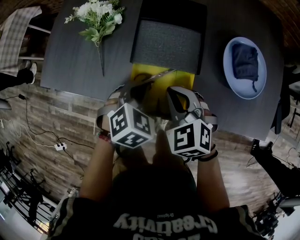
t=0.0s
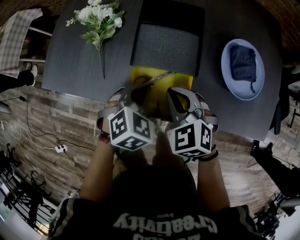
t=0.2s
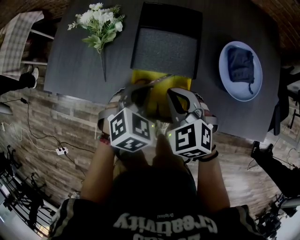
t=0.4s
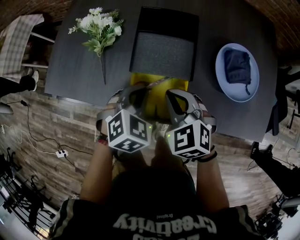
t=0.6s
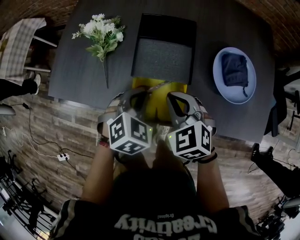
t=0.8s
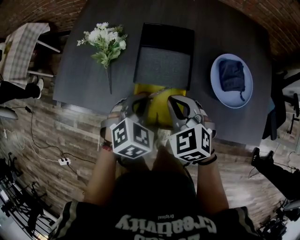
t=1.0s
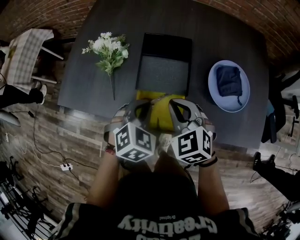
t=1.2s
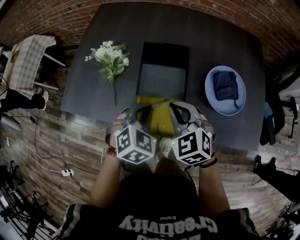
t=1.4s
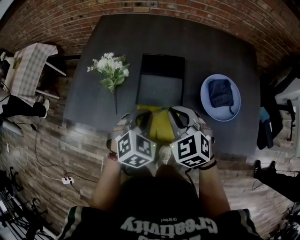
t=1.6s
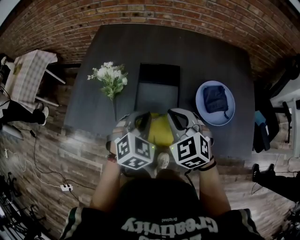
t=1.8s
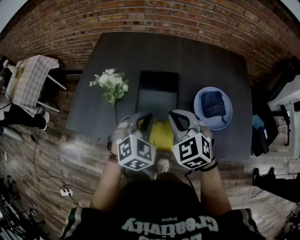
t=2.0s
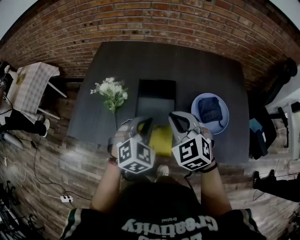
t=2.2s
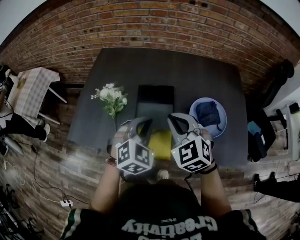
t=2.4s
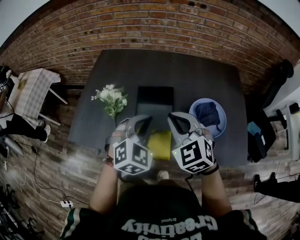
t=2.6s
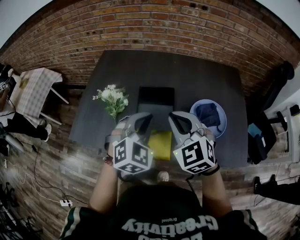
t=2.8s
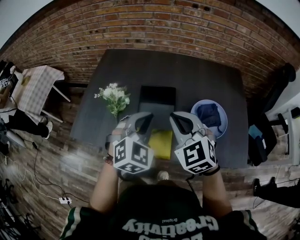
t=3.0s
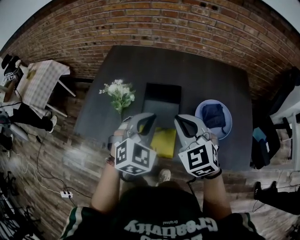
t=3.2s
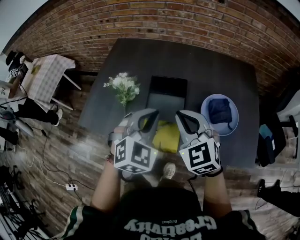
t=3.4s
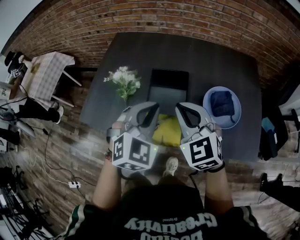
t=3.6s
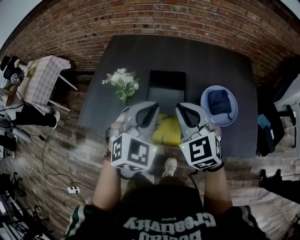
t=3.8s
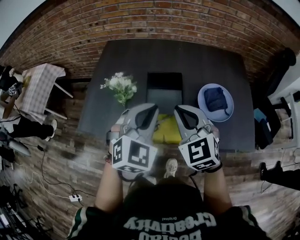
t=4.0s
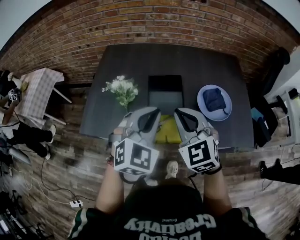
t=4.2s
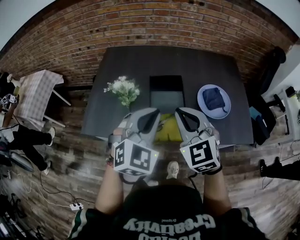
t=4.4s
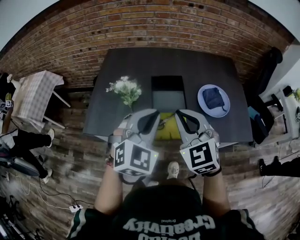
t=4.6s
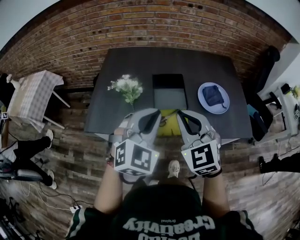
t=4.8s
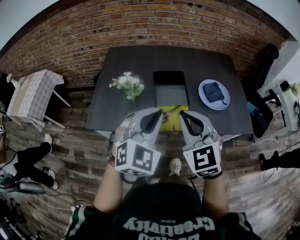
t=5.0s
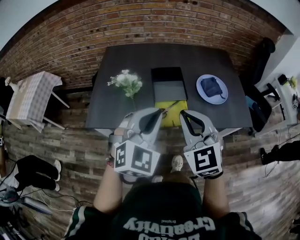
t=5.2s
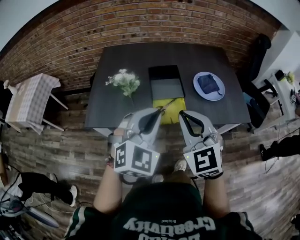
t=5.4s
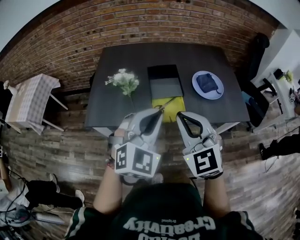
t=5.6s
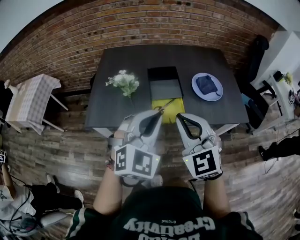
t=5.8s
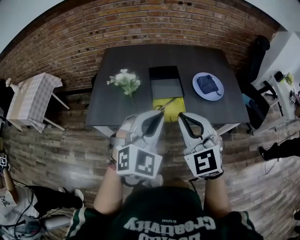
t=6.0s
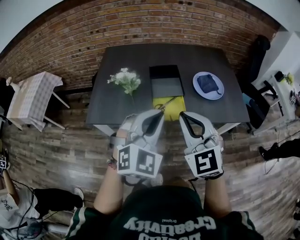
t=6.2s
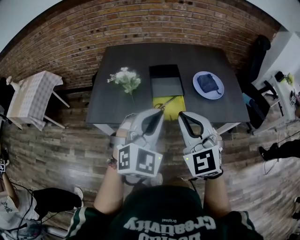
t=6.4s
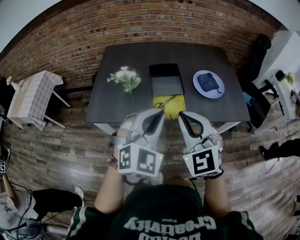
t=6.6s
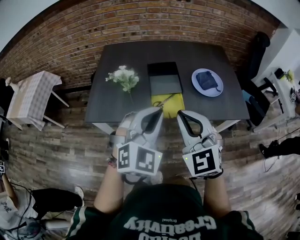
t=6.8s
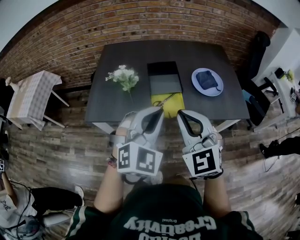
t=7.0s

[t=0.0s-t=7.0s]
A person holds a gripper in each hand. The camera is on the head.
t=0.0s to t=1.4s: Both grippers travel together upward, about 10 cm.
t=1.4s to t=2.8s: The two grippers go approximately 15 cm upward. The left gripper rotates approximately 20 degrees.
t=2.8s to t=4.2s: The left gripper heads backward, upward and to the left, covering approximately 10 cm. Meanwhile the right gripper goes about 10 cm backward and to the left.
t=4.2s to t=5.6s: The grippers both shift backward by roughly 15 cm.
t=5.6s to t=7.0s: The grippers move only a little.

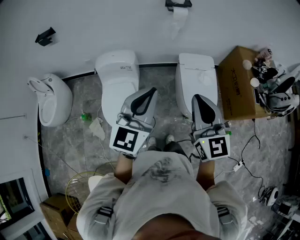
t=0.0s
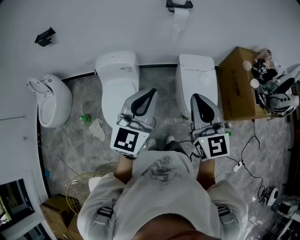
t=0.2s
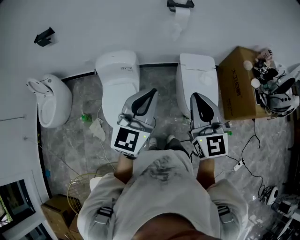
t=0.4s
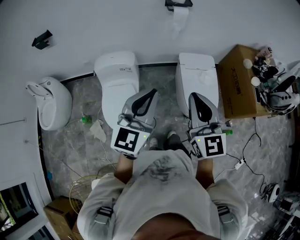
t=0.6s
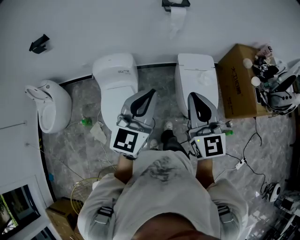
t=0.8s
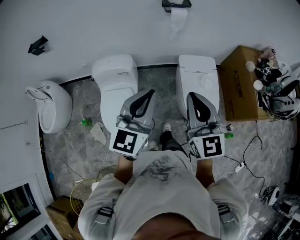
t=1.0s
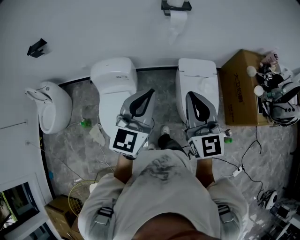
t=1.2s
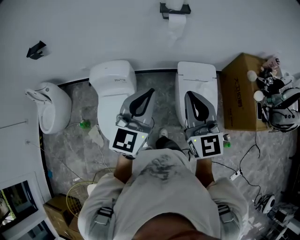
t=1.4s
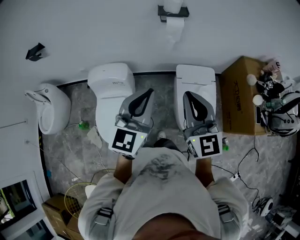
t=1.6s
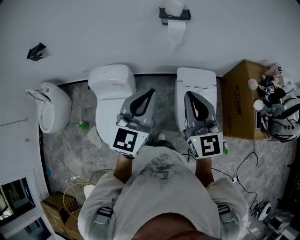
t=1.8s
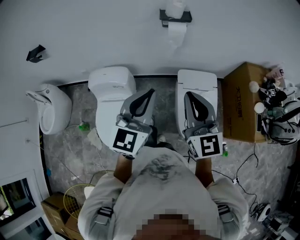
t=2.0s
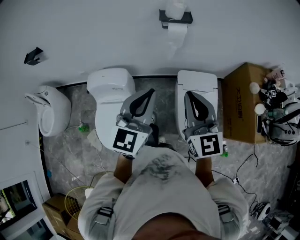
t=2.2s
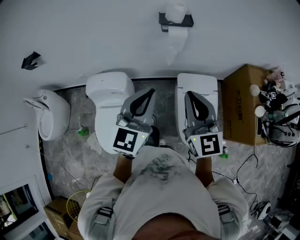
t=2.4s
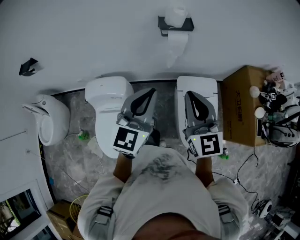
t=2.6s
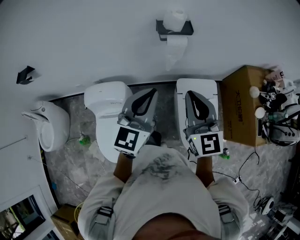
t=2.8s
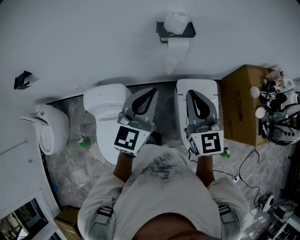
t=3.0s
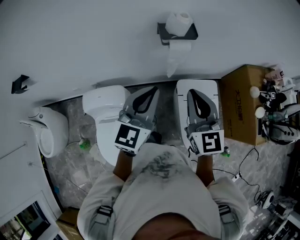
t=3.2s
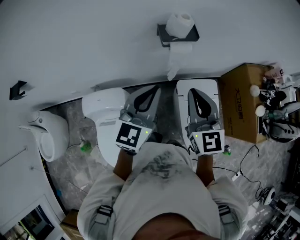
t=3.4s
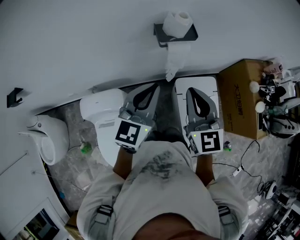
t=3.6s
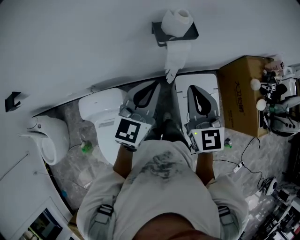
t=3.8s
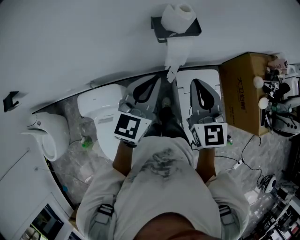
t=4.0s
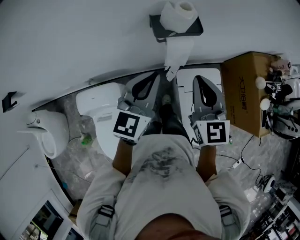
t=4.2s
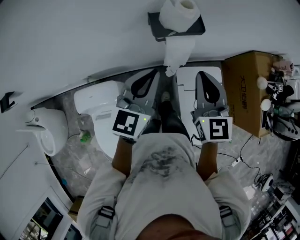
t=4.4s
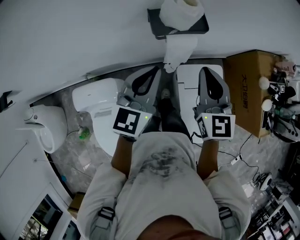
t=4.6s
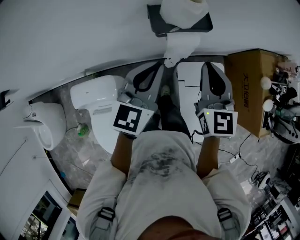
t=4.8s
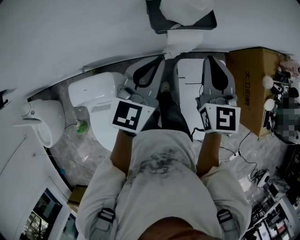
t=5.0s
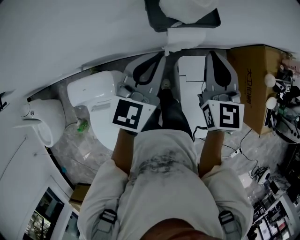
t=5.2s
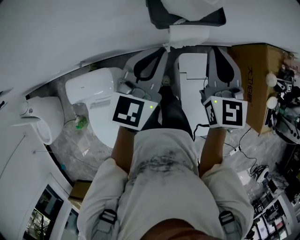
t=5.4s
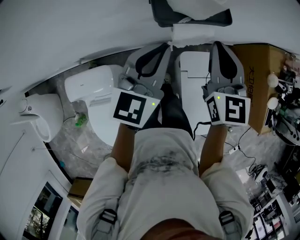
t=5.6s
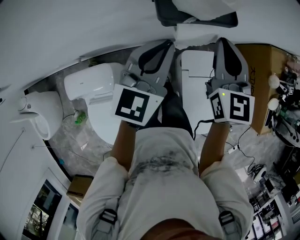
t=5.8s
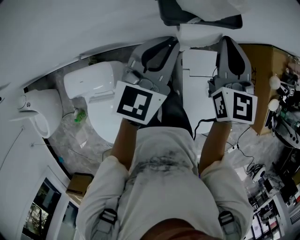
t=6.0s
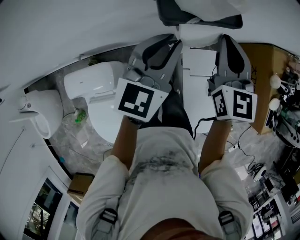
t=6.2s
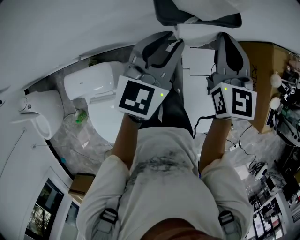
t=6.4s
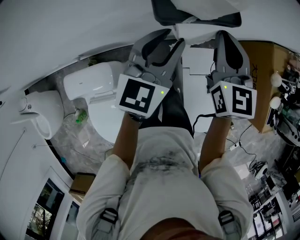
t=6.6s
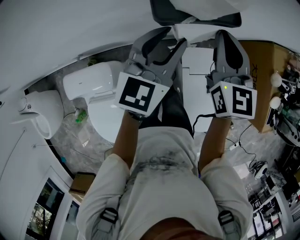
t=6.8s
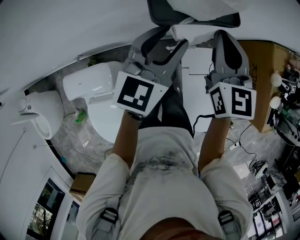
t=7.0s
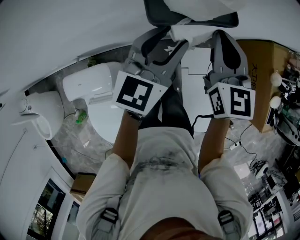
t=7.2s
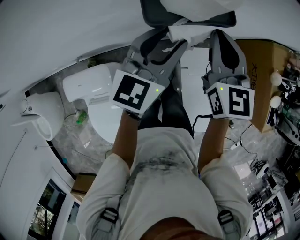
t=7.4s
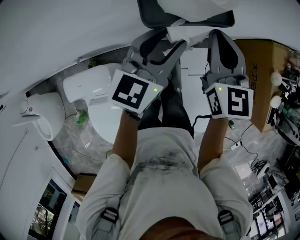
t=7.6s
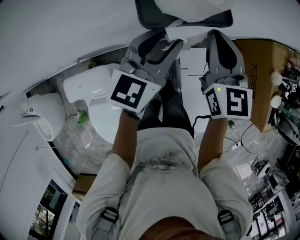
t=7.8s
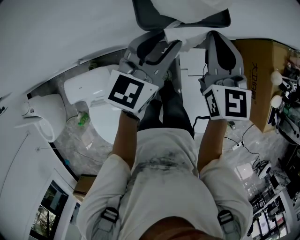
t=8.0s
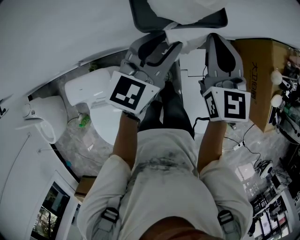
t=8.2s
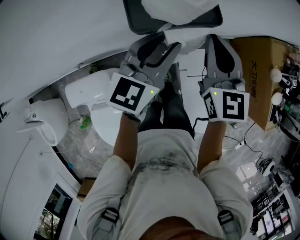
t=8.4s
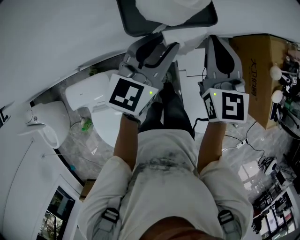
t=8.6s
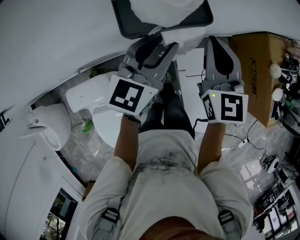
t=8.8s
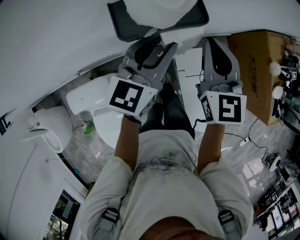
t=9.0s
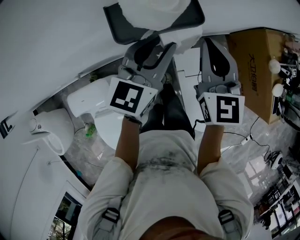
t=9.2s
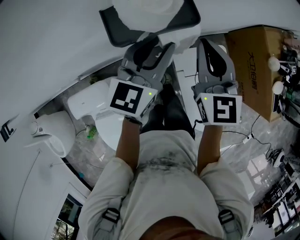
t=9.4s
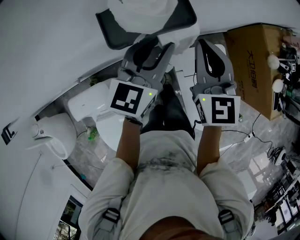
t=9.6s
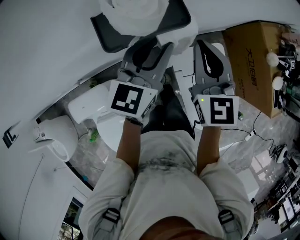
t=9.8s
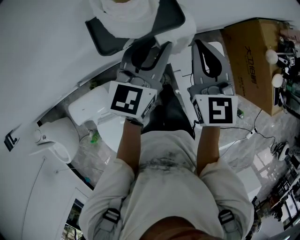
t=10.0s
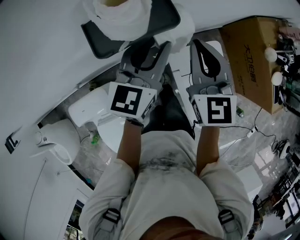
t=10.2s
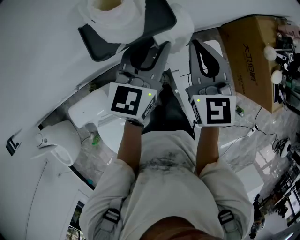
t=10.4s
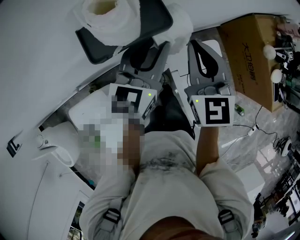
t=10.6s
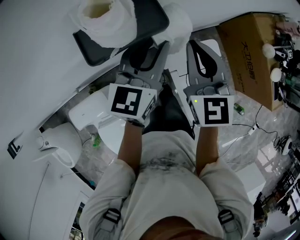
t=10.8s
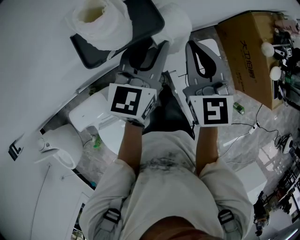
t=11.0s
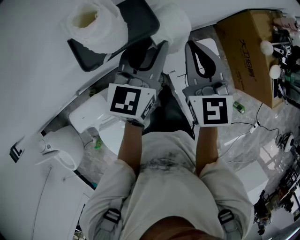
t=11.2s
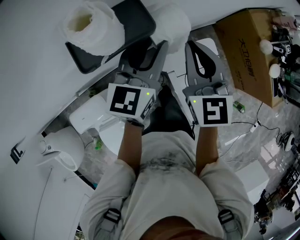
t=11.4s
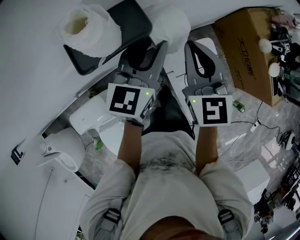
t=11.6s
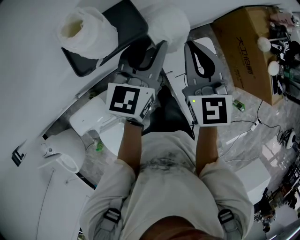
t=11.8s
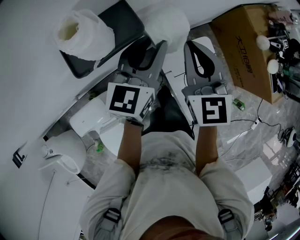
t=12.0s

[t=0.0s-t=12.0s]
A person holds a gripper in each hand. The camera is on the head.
t=0.0s to t=1.6s: The grippers both shift forward by roughly 20 cm.
t=1.6s to t=3.0s: The grippers both shift forward by approximately 20 cm.
t=3.0s to t=4.4s: The two grippers go some 20 cm forward and downward.
t=4.4s to t=6.0s: The grippers both shift forward and downward by approximately 10 cm.
t=6.0s to t=7.6s: The left gripper opens.
t=7.6s to t=9.0s: There are only small adjustments of the grippers.
t=9.0s to t=10.4s: The grippers stay close to where they were, moving slightly.
t=10.4s to t=12.0s: The left gripper moves some 5 cm.

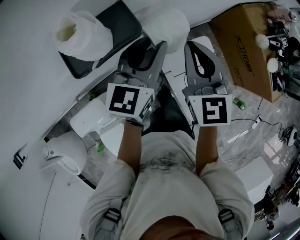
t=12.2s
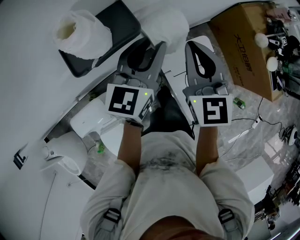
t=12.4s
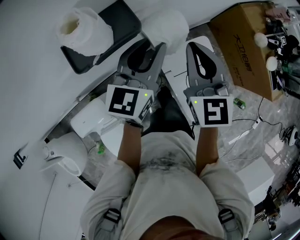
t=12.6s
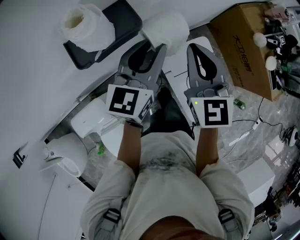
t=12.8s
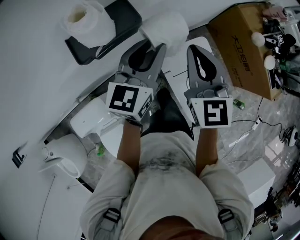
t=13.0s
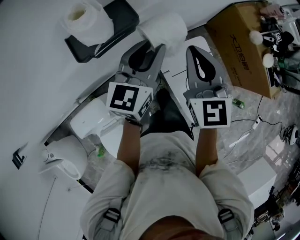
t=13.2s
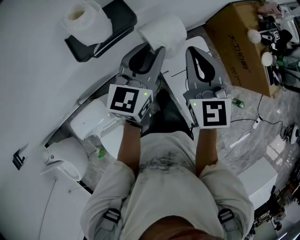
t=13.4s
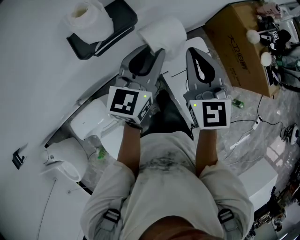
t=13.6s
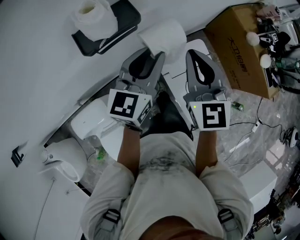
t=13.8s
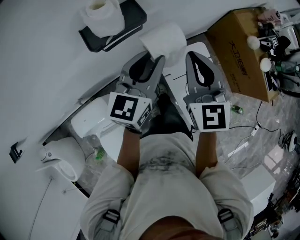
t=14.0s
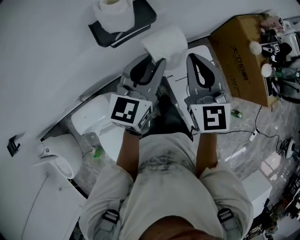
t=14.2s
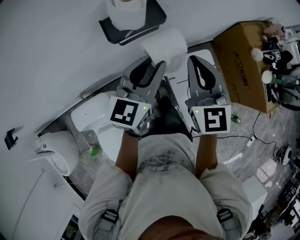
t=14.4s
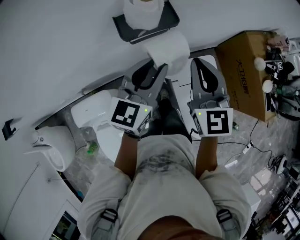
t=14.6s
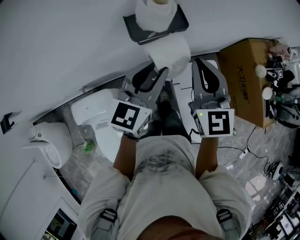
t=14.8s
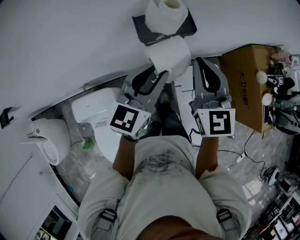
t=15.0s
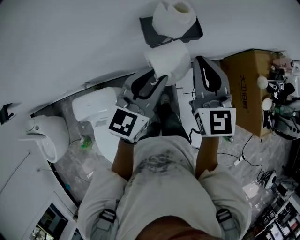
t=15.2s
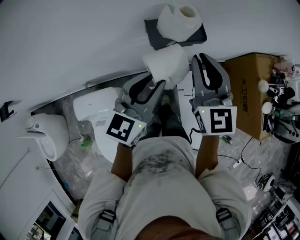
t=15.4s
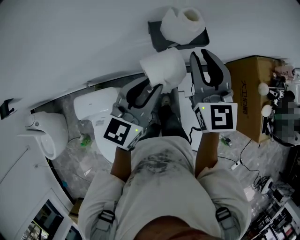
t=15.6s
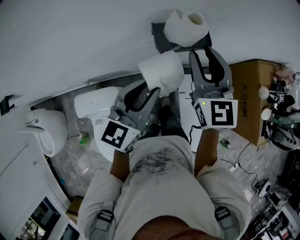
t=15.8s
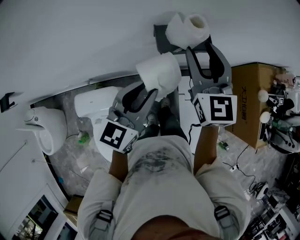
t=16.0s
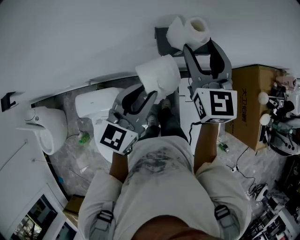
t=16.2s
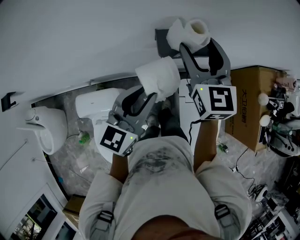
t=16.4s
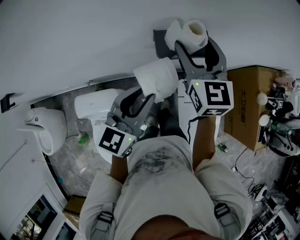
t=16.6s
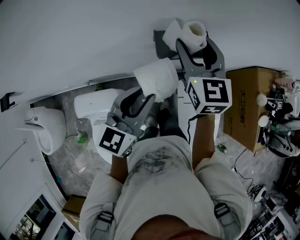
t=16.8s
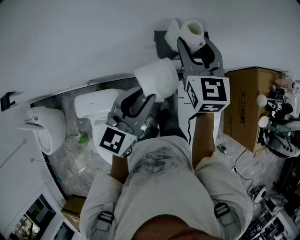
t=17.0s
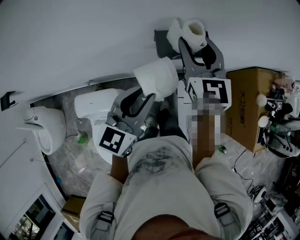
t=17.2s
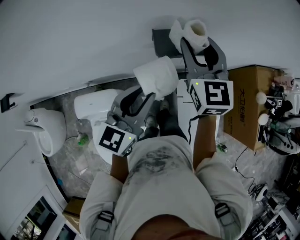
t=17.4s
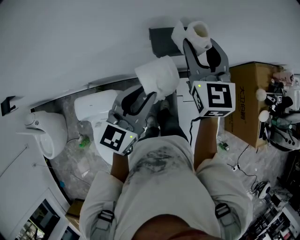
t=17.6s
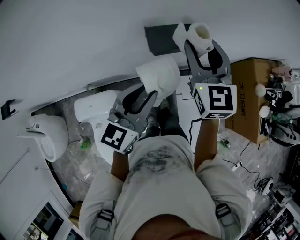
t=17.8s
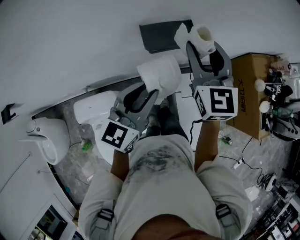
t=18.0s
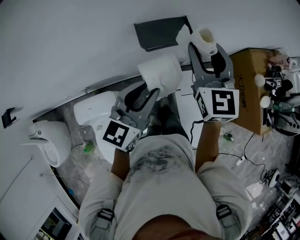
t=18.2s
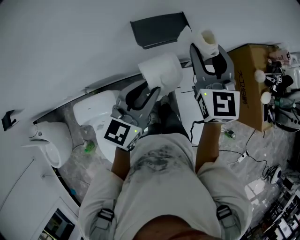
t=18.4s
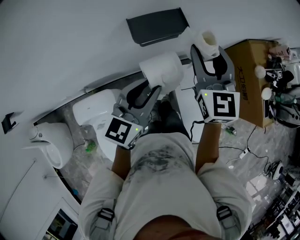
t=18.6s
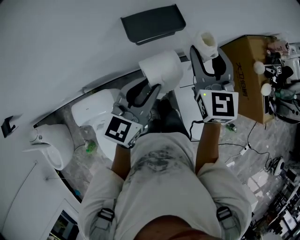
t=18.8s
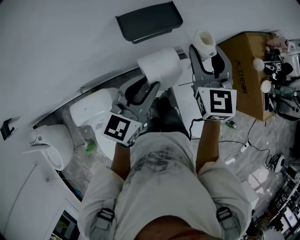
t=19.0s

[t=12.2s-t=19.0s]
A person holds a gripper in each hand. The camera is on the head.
t=12.2s to t=13.6s: Both grippers move backward, roughly 5 cm.
t=13.6s to t=15.0s: The left gripper shifts about 15 cm to the left and backward. Meanwhile the right gripper travels to the left and upward by roughly 15 cm.
t=15.0s to t=16.2s: The right gripper goes about 10 cm forward and to the left, and opens its fingers. The left gripper moves to the left, about 5 cm.
t=16.2s to t=17.6s: The grippers make only small movements.
t=17.6s to t=19.0s: The left gripper heads to the right, covering some 5 cm; the right gripper heads to the right and downward, covering approximately 10 cm.
